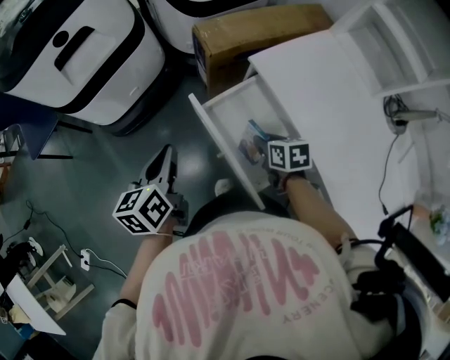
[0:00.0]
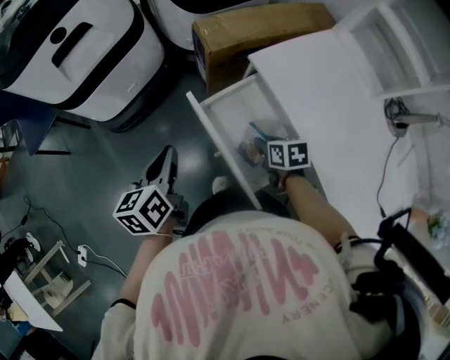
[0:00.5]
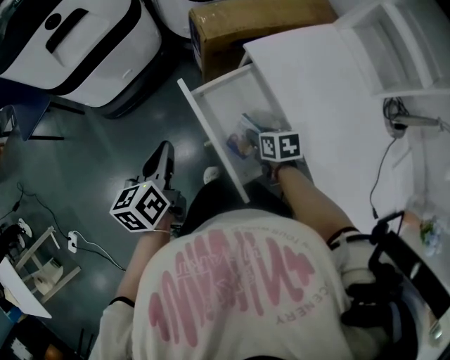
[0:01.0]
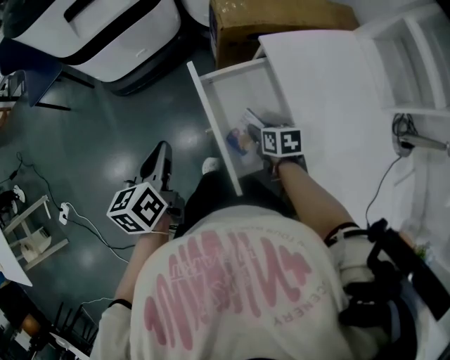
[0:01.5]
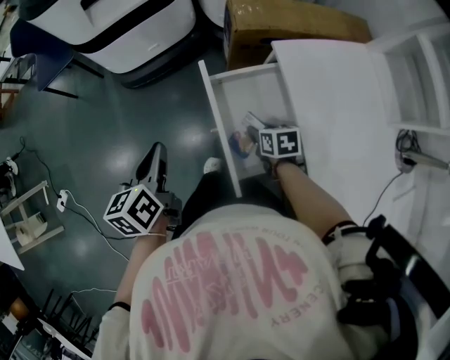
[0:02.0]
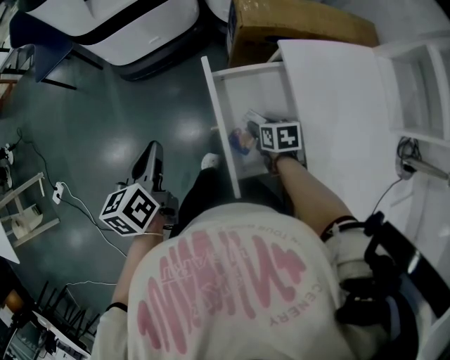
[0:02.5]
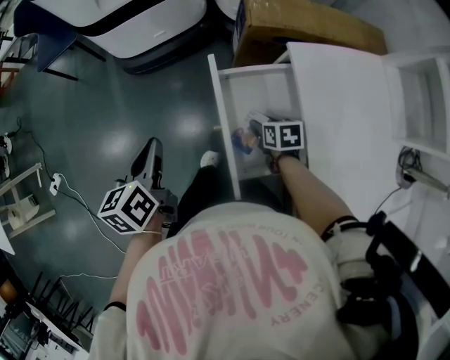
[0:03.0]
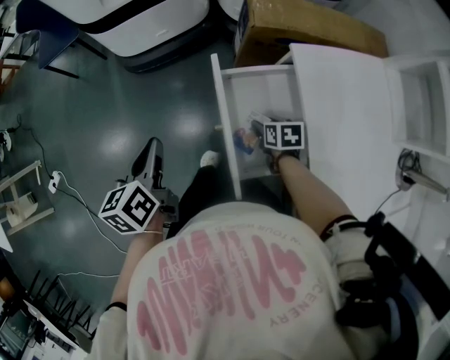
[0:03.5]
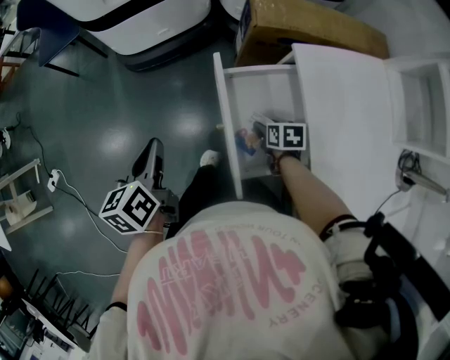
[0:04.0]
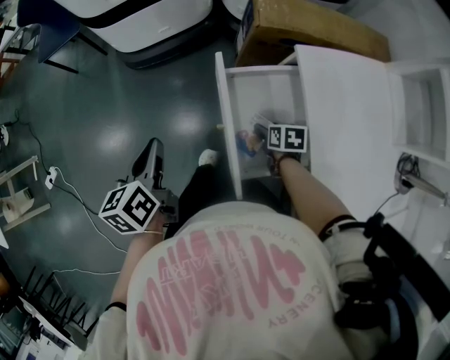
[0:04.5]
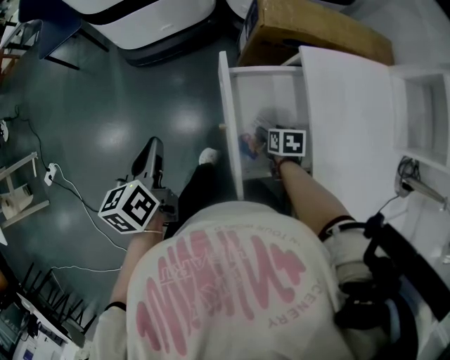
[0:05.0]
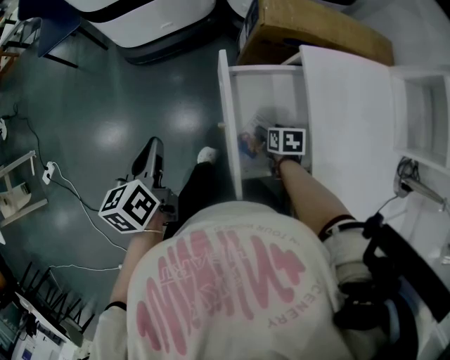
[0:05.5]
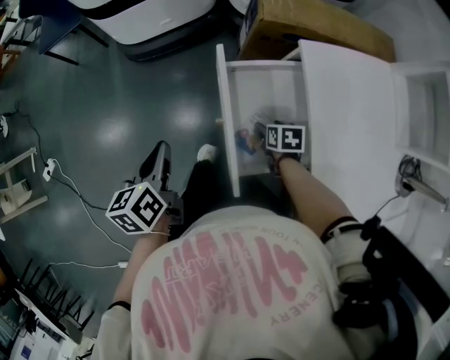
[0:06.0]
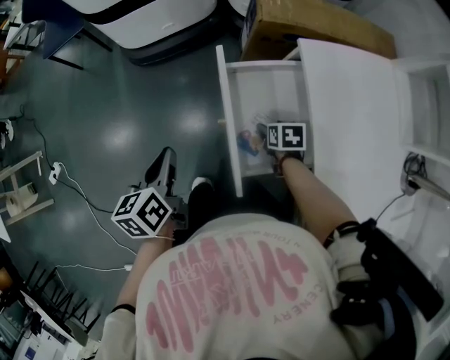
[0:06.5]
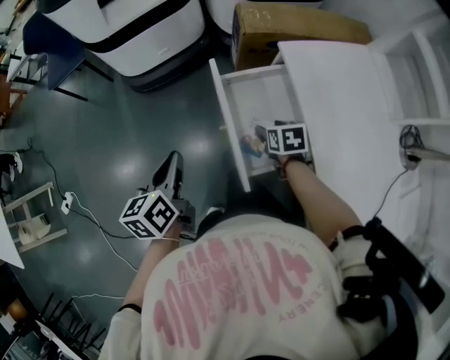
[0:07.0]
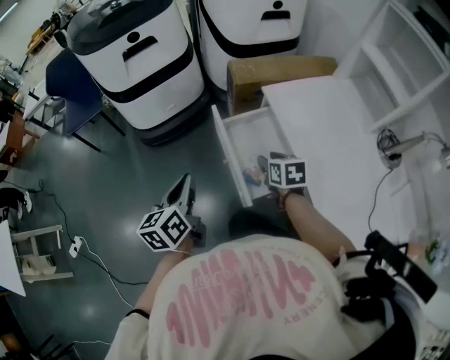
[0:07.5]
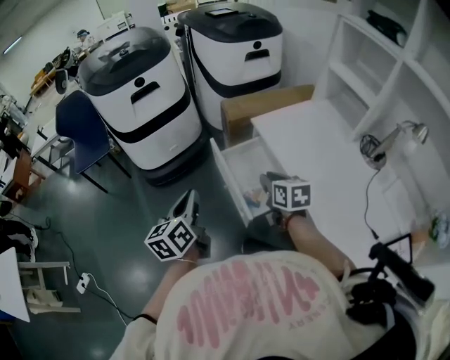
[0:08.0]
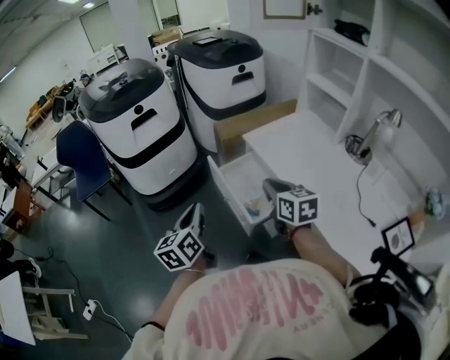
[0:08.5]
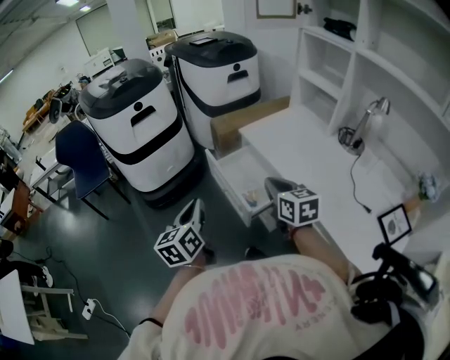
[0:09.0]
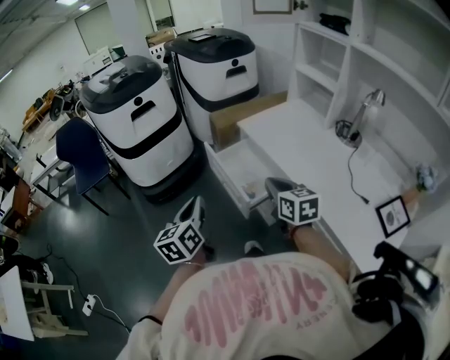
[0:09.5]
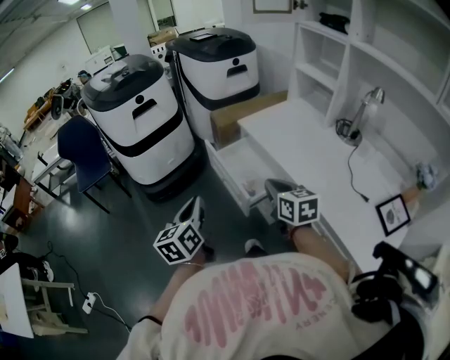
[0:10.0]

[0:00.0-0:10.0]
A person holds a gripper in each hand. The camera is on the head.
0:00.0 to 0:02.0: The right gripper heads downward, covering approximately 5 cm; the left gripper heads backward, covering approximately 10 cm, and turns by about 20 degrees.
0:02.0 to 0:06.0: The grippers make only small movements.
0:06.0 to 0:08.0: The right gripper moves upward, about 30 cm, tips its fingers upward by some 30 degrees, and closes up; the left gripper moves upward, approximately 15 cm, and changes its angle by roughly 30 degrees.
0:08.0 to 0:10.0: The right gripper heads backward and upward, covering approximately 15 cm, while the left gripper is displaced backward by roughly 10 cm.

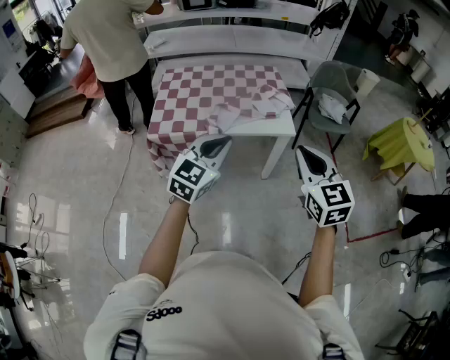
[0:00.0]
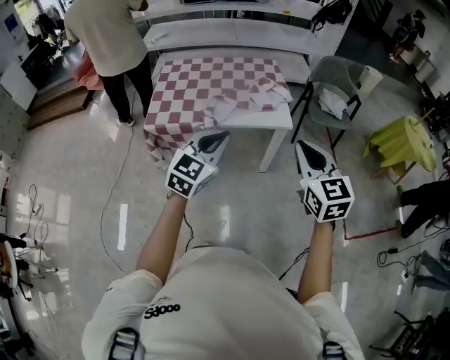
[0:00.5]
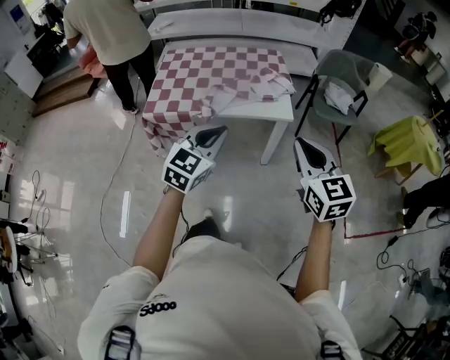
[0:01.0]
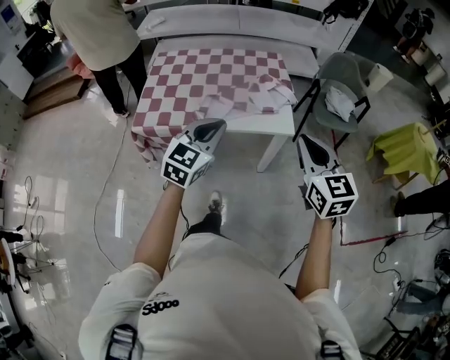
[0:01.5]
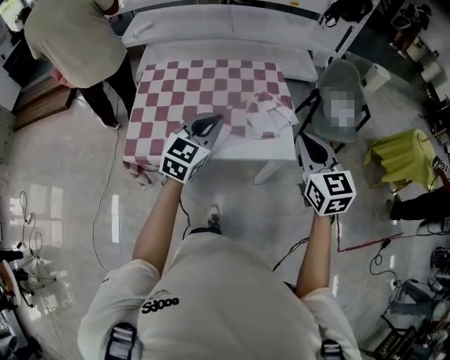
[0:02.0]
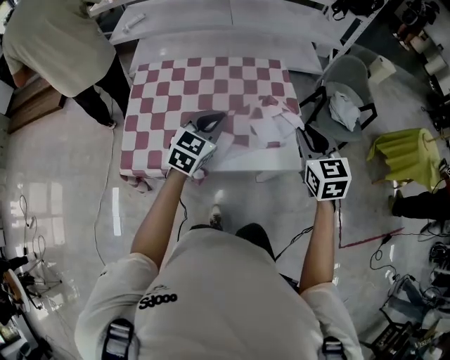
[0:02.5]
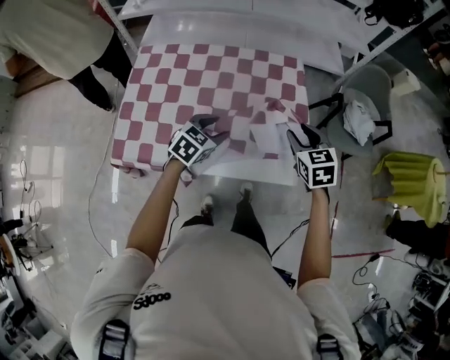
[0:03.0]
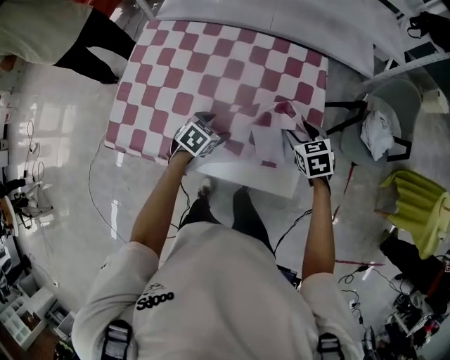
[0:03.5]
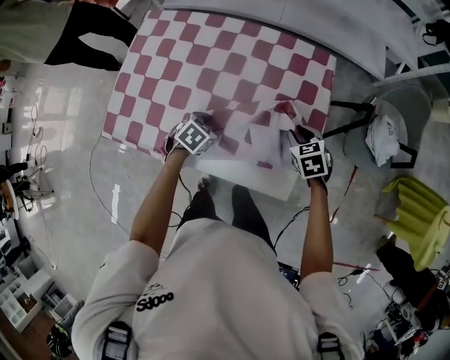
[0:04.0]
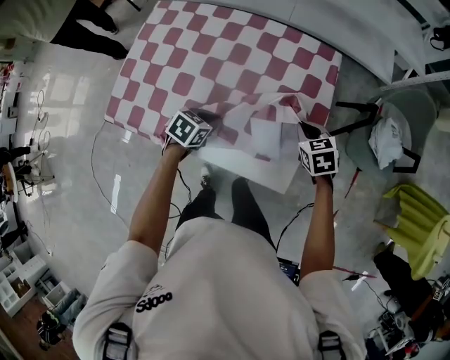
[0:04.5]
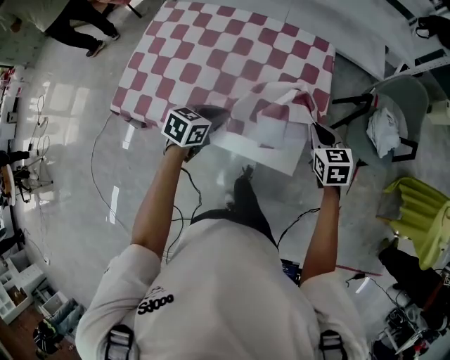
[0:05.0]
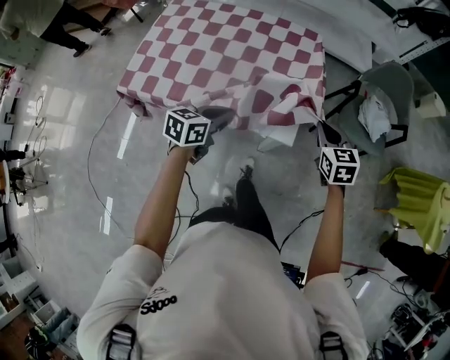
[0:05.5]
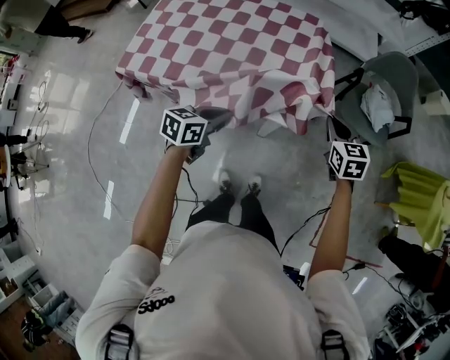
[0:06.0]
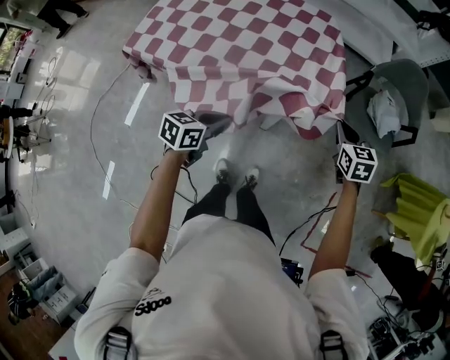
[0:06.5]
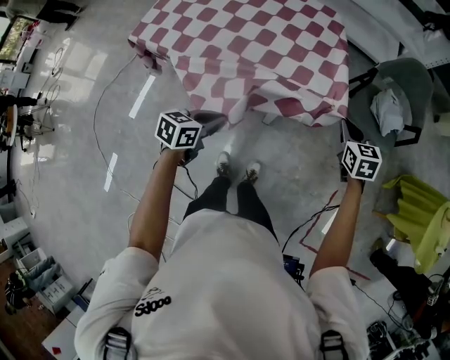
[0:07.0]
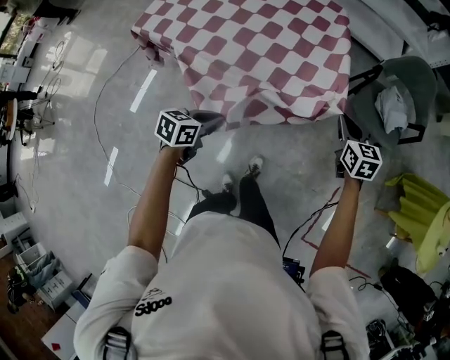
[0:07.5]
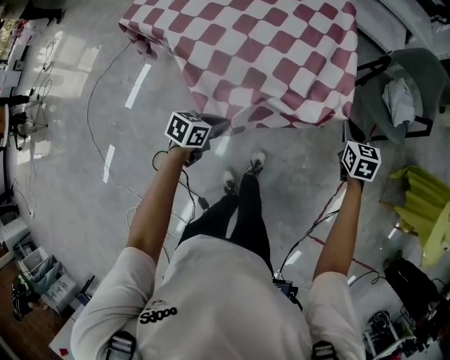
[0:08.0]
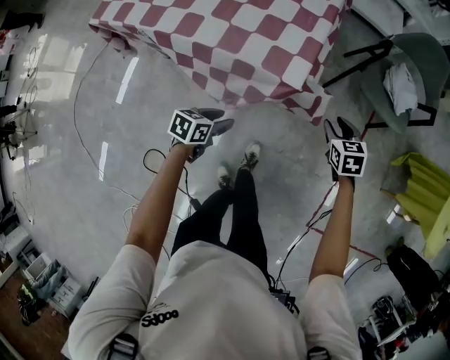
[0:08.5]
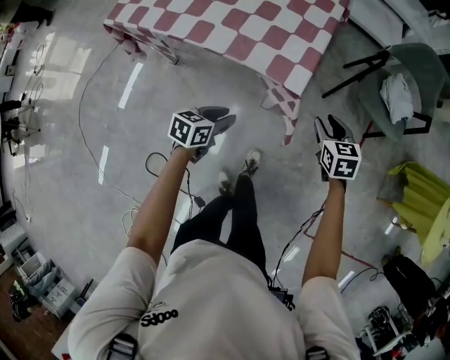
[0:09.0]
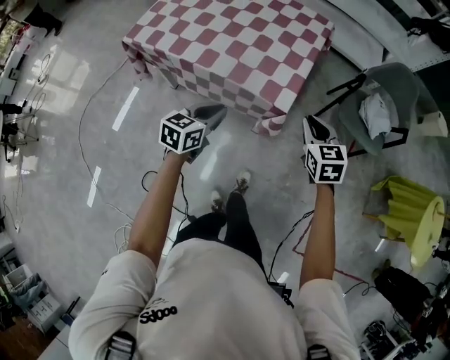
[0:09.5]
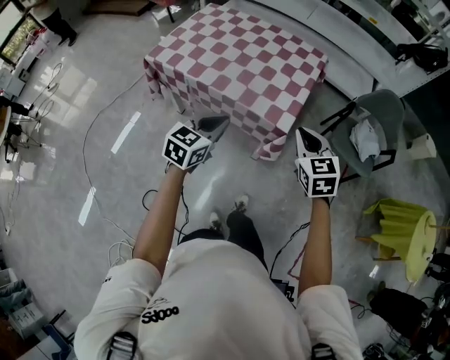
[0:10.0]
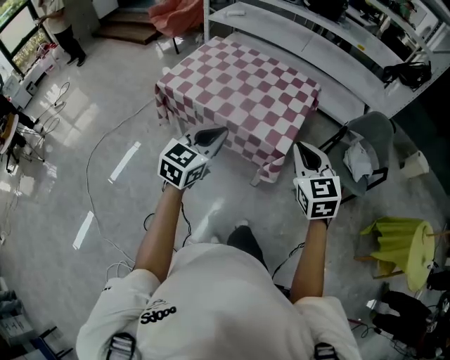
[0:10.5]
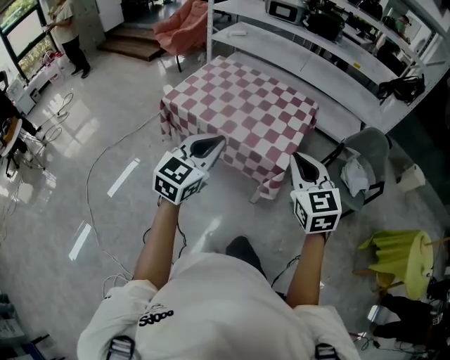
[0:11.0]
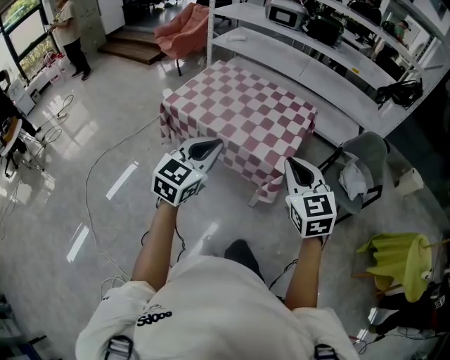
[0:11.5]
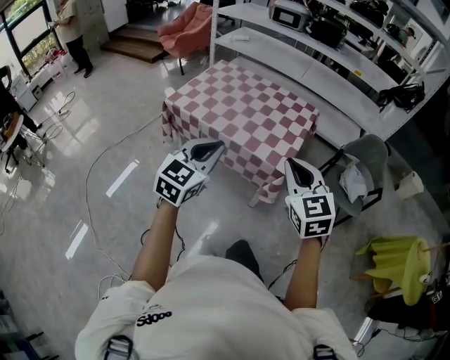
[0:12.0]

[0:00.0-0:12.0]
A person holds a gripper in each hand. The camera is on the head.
0:00.0 to 0:02.0: Both grippers travel together forward, roughly 30 cm.
0:02.0 to 0:04.0: The grippers both shift downward and forward by approximately 40 cm. The right gripper angles its fingers downward, by some 40 degrees, and opens its fingers; the left gripper tips its fingers downward by roughly 50 degrees, and opens.
0:04.0 to 0:06.0: The left gripper is displaced backward, upward and to the right by about 30 cm, tilts its fingers approximately 30 degrees upward, and closes up. The right gripper is displaced backward, to the right and upward by about 30 cm, turns by about 20 degrees, and closes up.
0:06.0 to 0:08.0: The right gripper goes roughly 15 cm downward and to the right. Meanwhile the left gripper moves downward and backward, about 20 cm.
0:08.0 to 0:10.0: The right gripper is displaced upward, to the left and backward by roughly 30 cm, rotates approximately 20 degrees, and opens, then closes again. The left gripper is displaced upward by some 25 cm, changes its angle by approximately 40 degrees, and opens, then closes once more.
0:10.0 to 0:12.0: The left gripper is displaced upward and backward by some 20 cm; the right gripper moves upward, backward and to the left, about 20 cm.

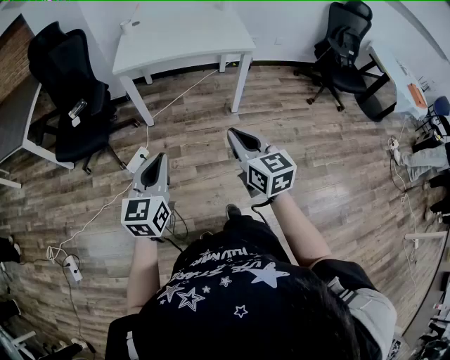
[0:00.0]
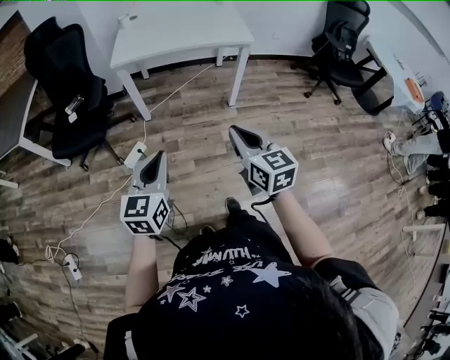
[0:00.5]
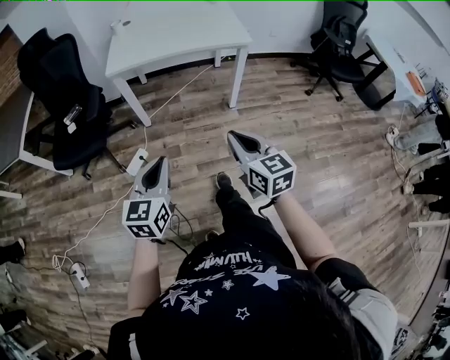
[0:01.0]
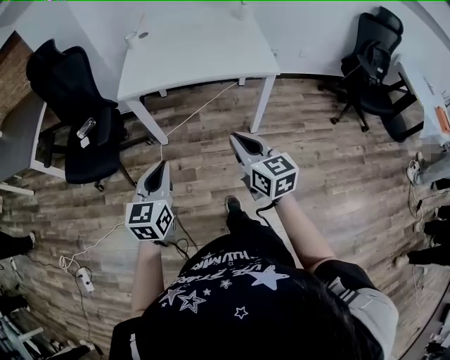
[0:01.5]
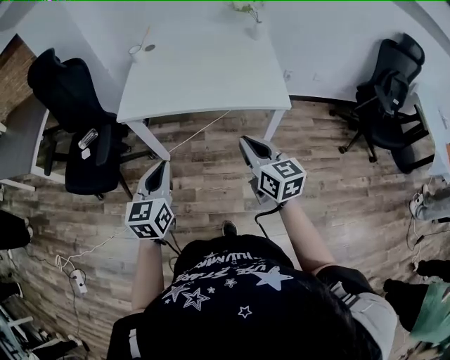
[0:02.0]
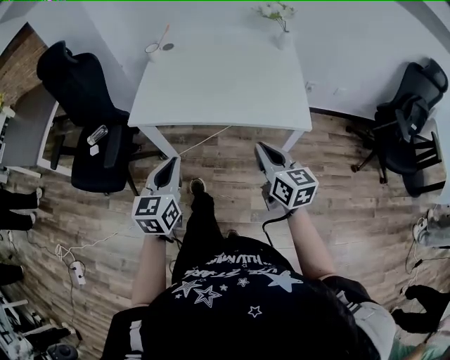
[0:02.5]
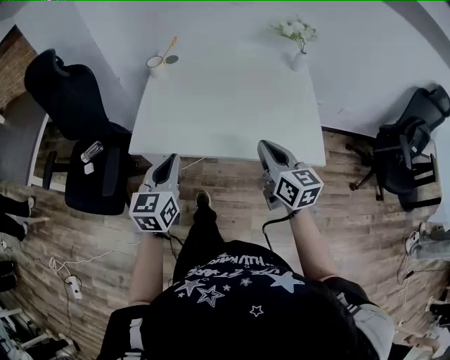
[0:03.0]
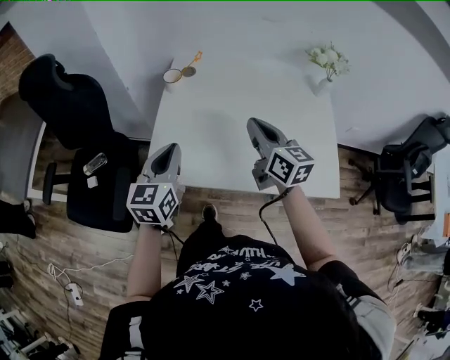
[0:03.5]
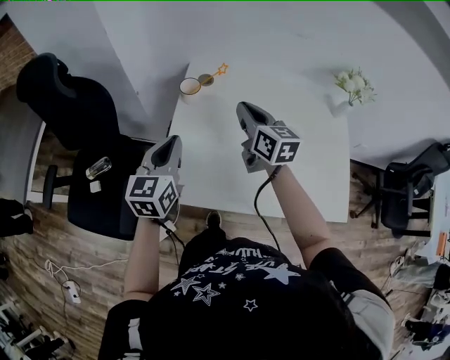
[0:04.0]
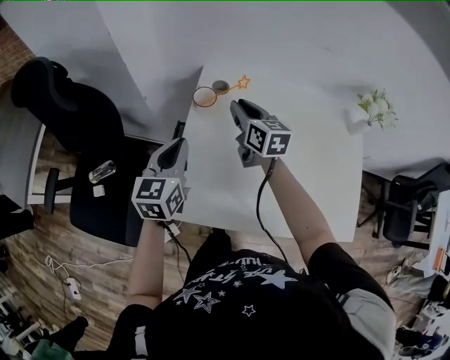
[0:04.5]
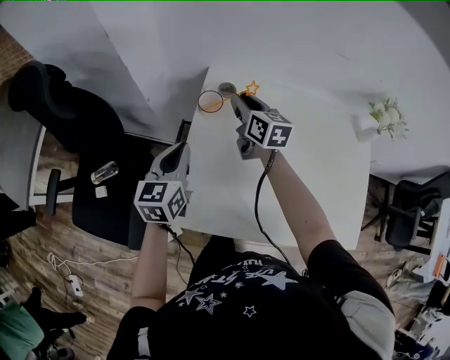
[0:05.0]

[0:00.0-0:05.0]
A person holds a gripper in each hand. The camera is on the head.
0:00.0 to 0:02.5: Both grippers are carried forward, some 40 cm.
0:02.5 to 0:05.0: The two grippers travel together, forward and to the left, some 60 cm. The right gripper opens its fingers.
